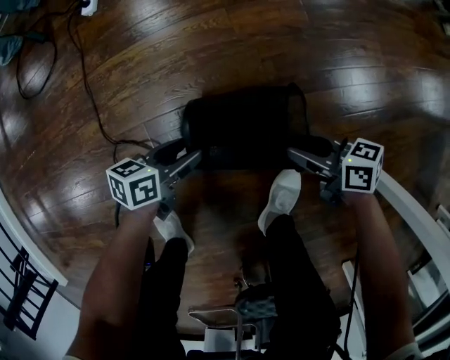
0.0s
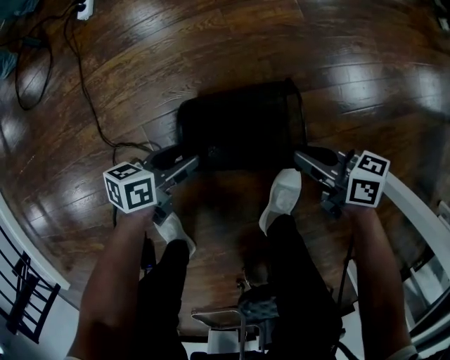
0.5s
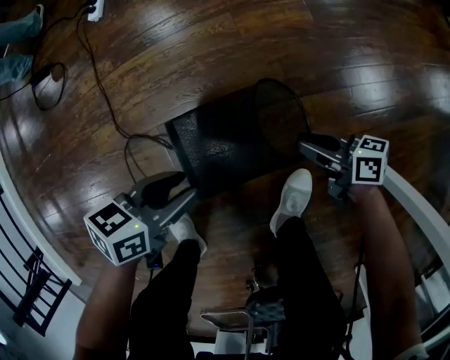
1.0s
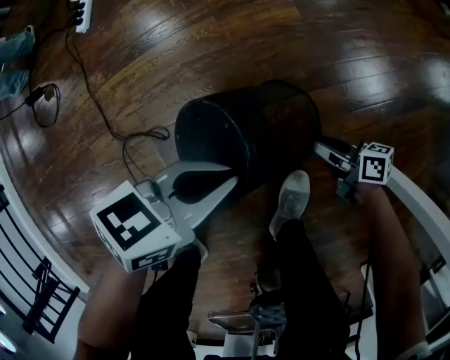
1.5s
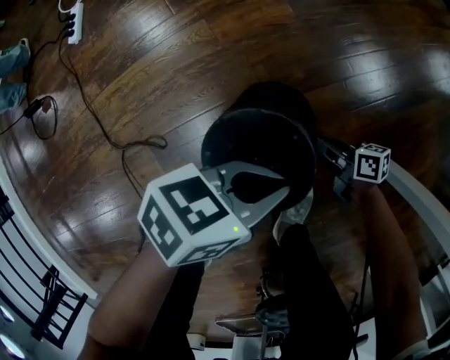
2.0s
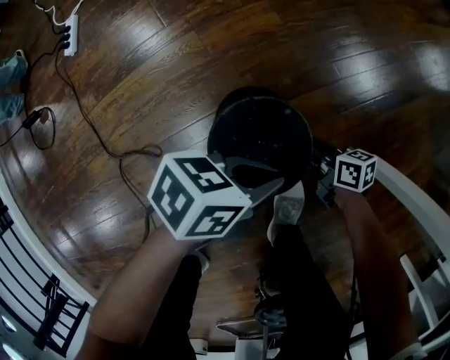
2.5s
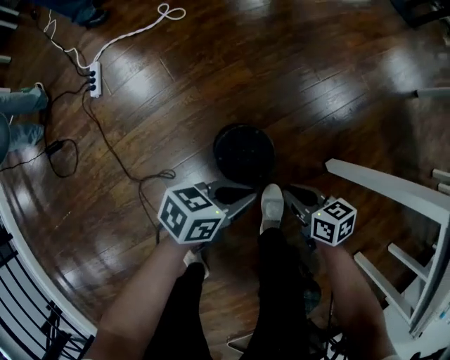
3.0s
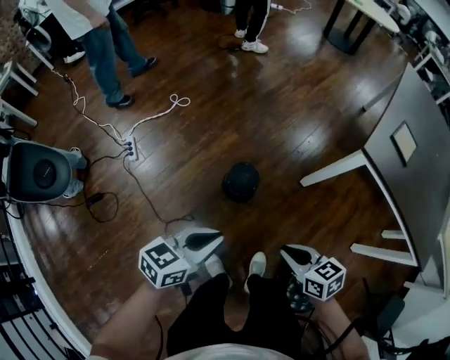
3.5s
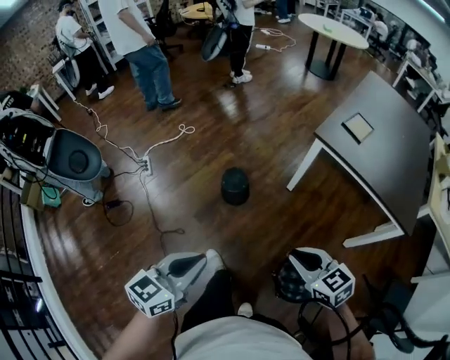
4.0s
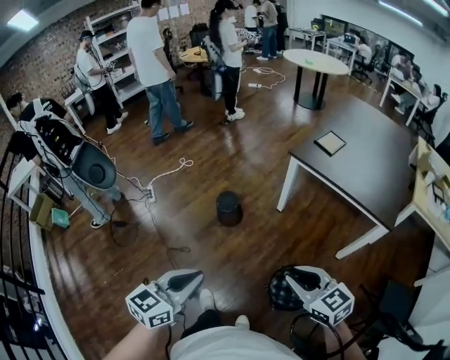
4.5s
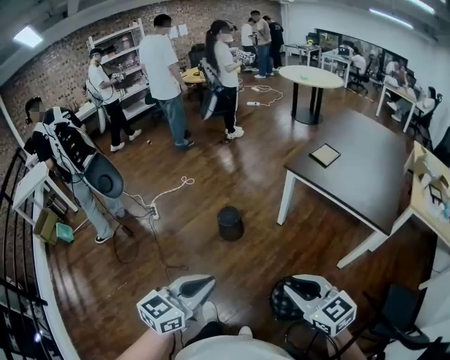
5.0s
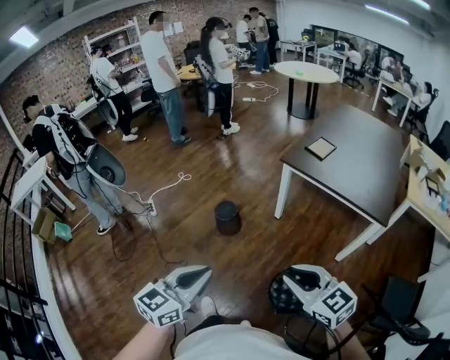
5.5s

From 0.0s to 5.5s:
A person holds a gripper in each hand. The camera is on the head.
From 0.0s to 2.0s: The left gripper changes place by some 25 cm, swivels some 40 degrees, and closes. The right gripper travels downward by roughly 10 cm, changes its angle by approximately 20 degrees, and closes its fingers.
From 2.0s to 3.5s: The grippers both shift upward by about 50 cm. The left gripper turns by approximately 20 degrees, while the right gripper changes its angle by some 30 degrees.
From 3.5s to 5.5s: The left gripper goes approximately 40 cm backward and upward, and turns by roughly 30 degrees. Meanwhile the right gripper heads backward, upward and to the right, covering approximately 50 cm, and turns by roughly 40 degrees.

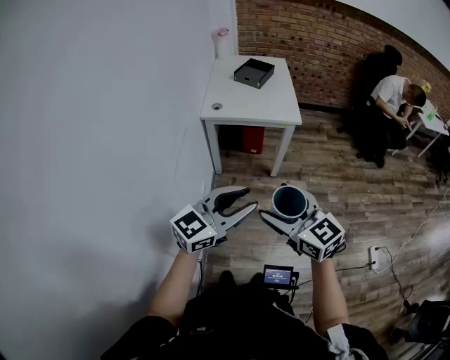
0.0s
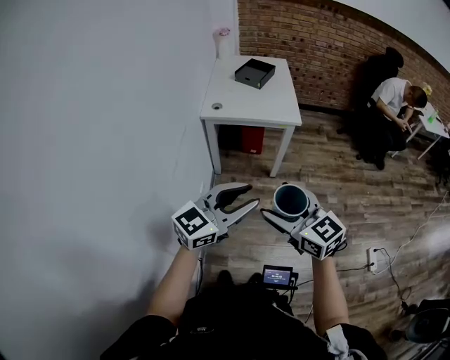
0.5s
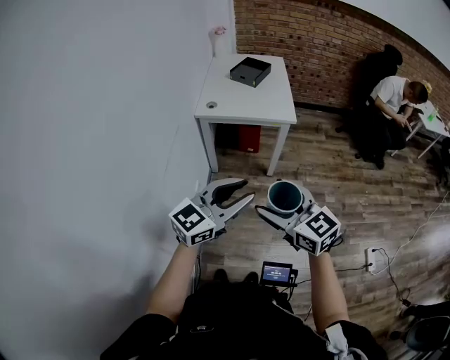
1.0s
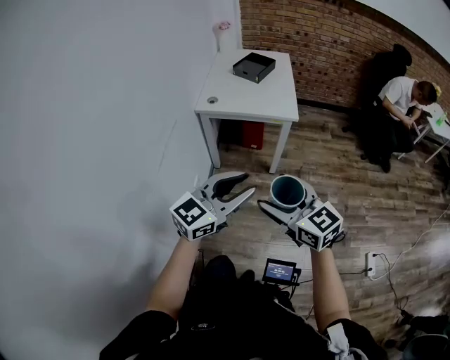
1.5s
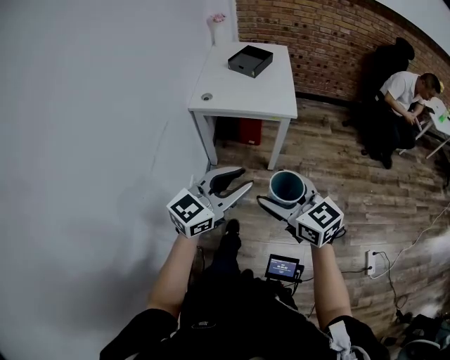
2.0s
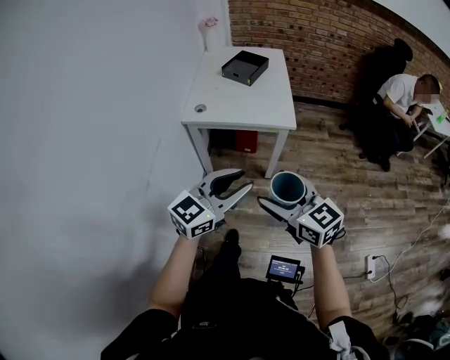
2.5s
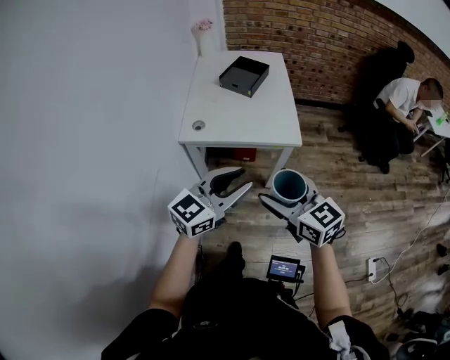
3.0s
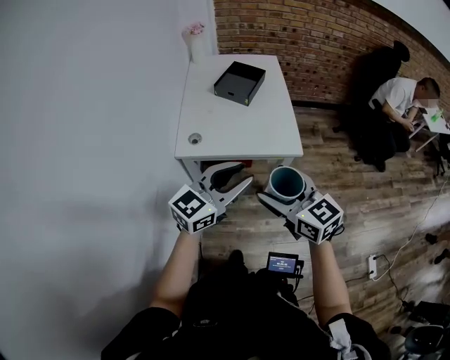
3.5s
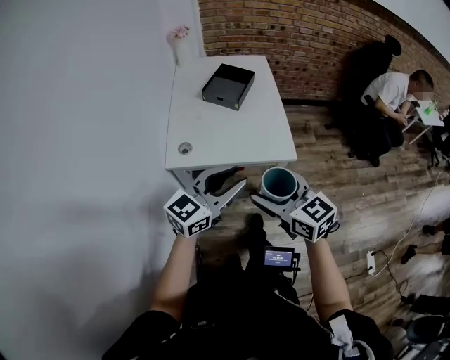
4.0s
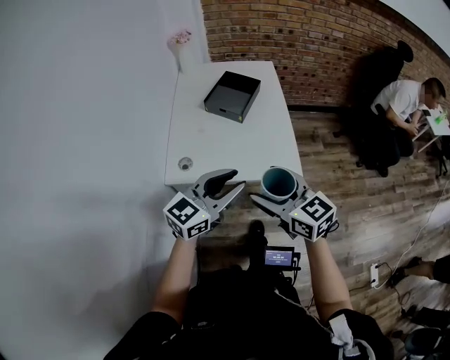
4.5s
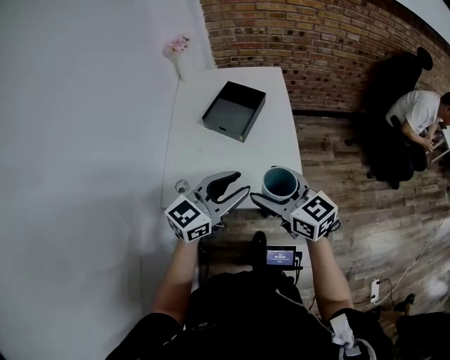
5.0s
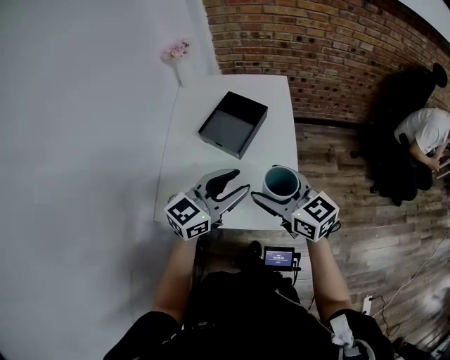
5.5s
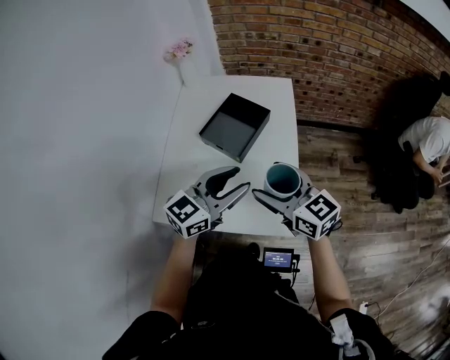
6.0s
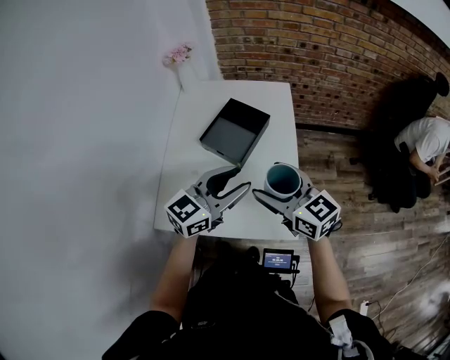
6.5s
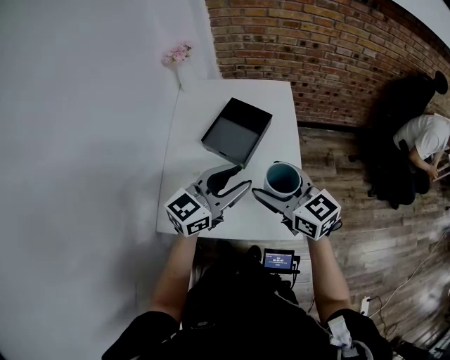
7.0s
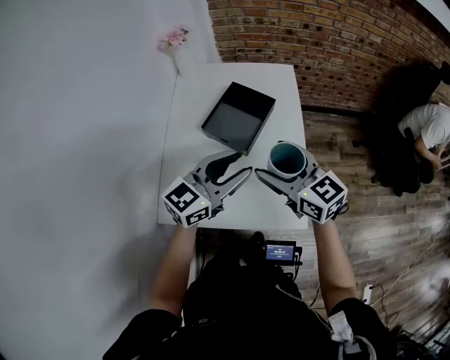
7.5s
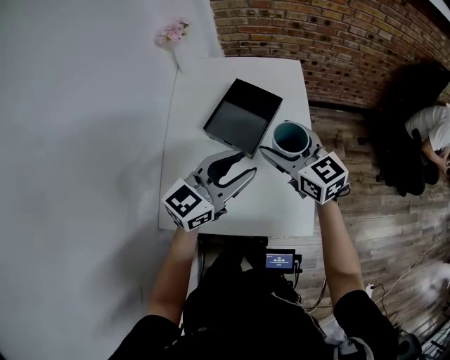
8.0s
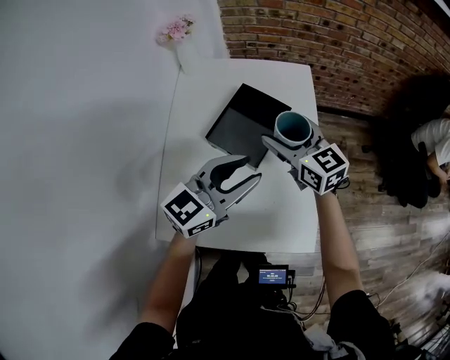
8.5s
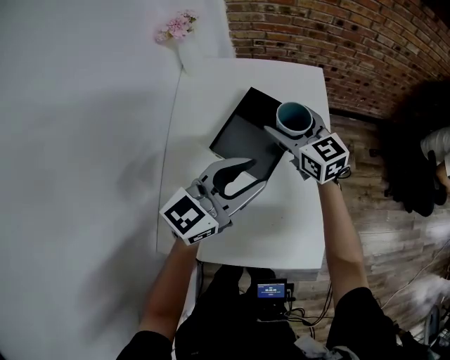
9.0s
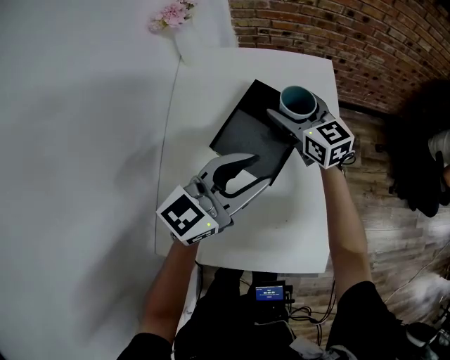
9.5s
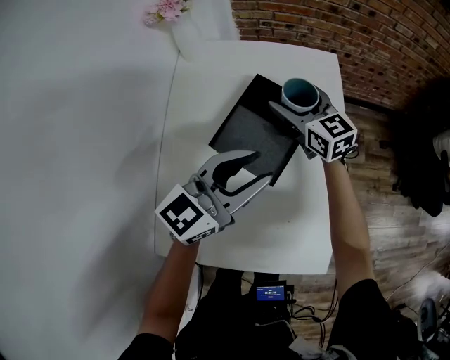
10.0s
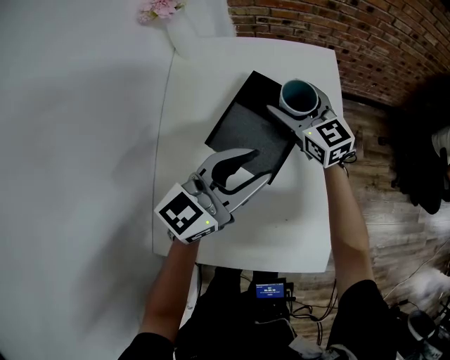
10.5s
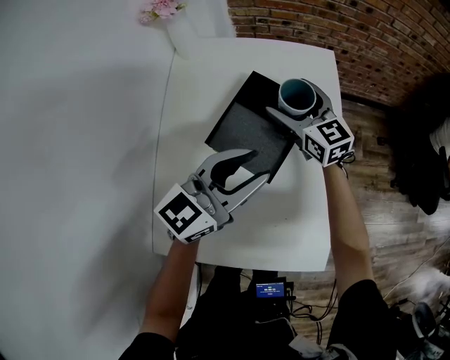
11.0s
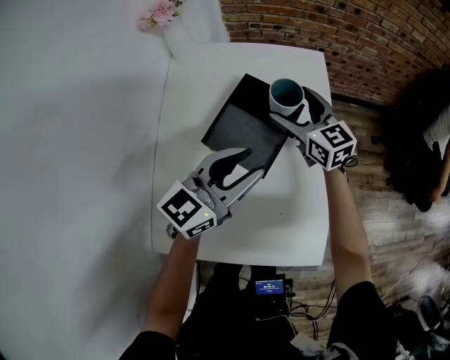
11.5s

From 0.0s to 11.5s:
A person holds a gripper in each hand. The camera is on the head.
From 0.0s to 2.0s: Both grippers travel together forward and to the right, roughly 10 cm.
From 2.0s to 4.0s: The grippers both shift forward by some 30 cm.
From 4.0s to 6.0s: The grippers both shift forward by roughly 30 cm.
From 6.0s to 7.5s: The left gripper moves approximately 5 cm. Meanwhile the right gripper moves about 5 cm.
From 7.5s to 9.5s: The left gripper shifts about 15 cm forward and downward. Meanwhile the right gripper is displaced forward and downward by approximately 30 cm.
From 9.5s to 11.5s: There are only small adjustments of the grippers.

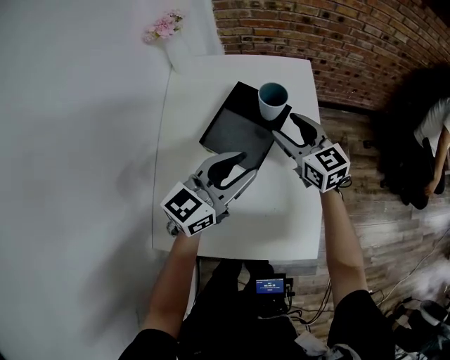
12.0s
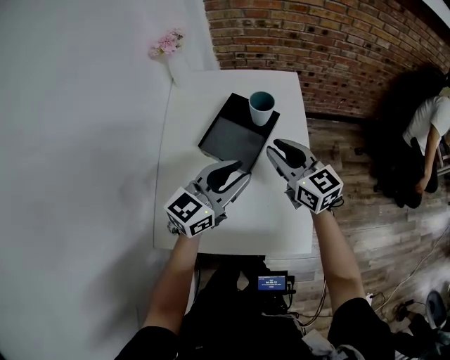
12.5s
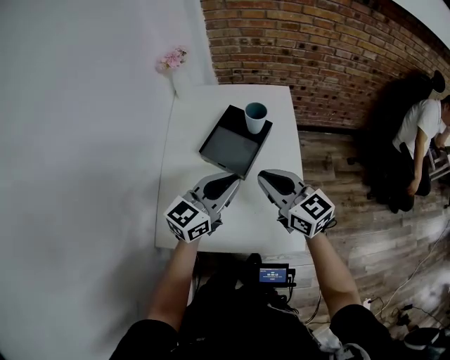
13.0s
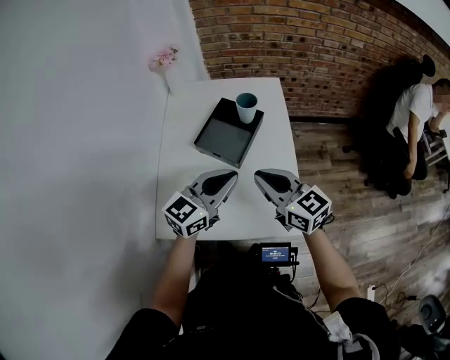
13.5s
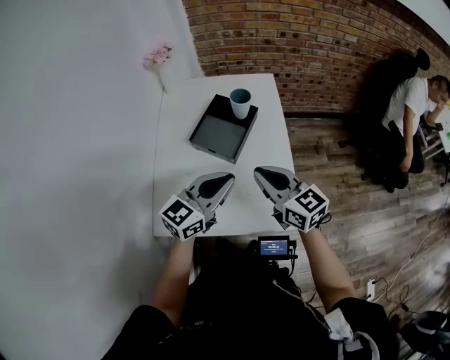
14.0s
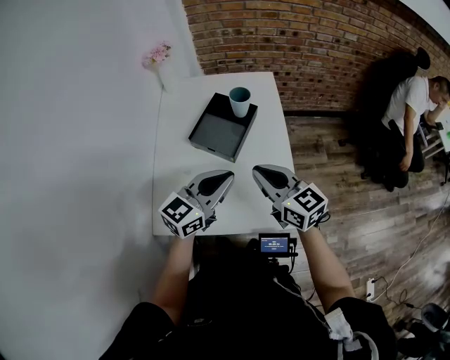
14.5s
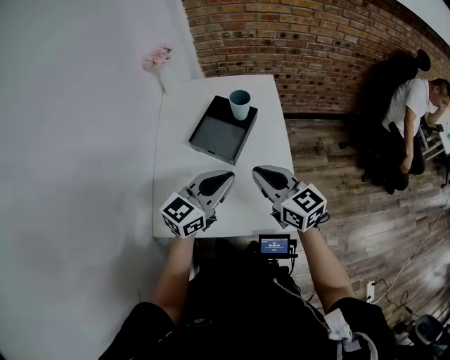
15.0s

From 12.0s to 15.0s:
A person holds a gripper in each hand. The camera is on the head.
From 12.0s to 13.5s: The right gripper heads backward and upward, covering roughly 25 cm, and closes up. The left gripper travels backward by approximately 10 cm, and closes.
From 13.5s to 15.0s: The grippers move only a little.

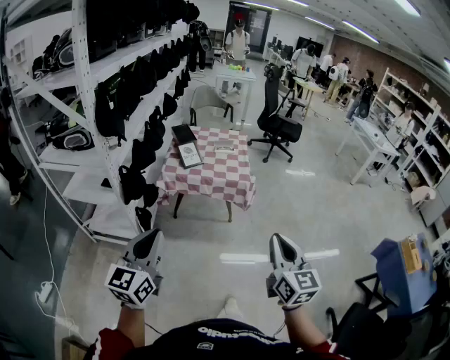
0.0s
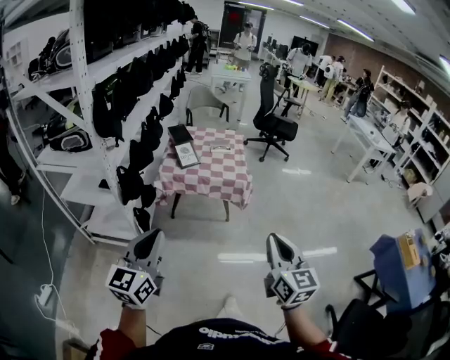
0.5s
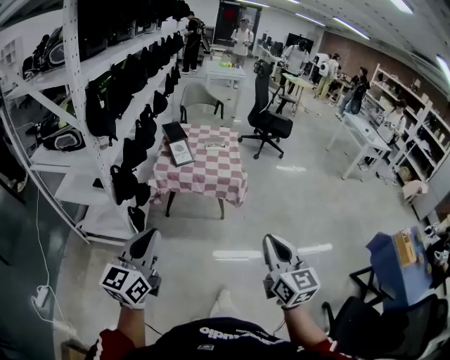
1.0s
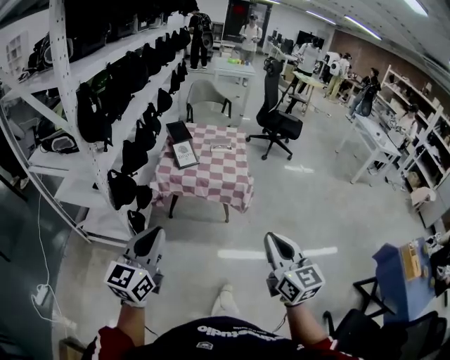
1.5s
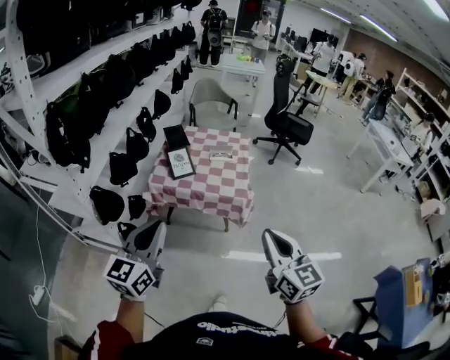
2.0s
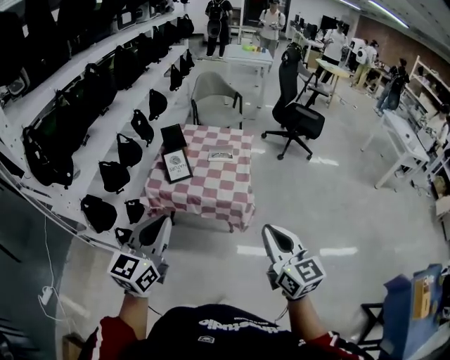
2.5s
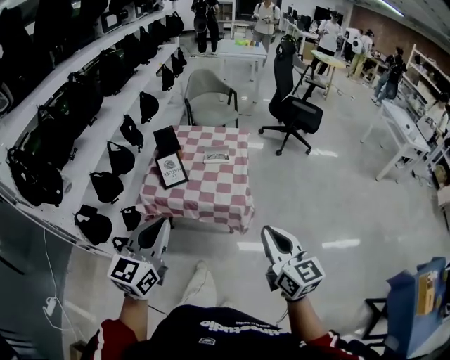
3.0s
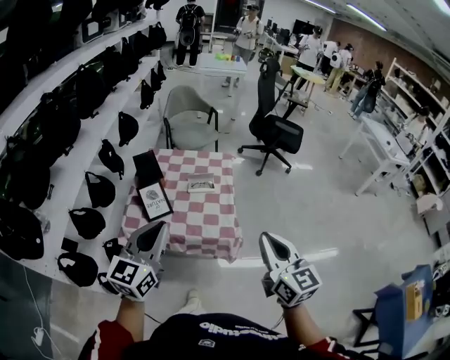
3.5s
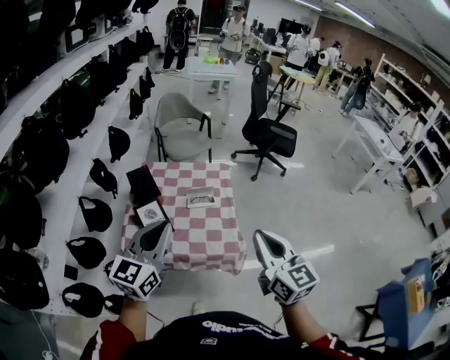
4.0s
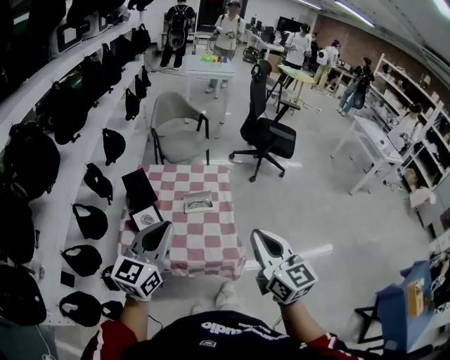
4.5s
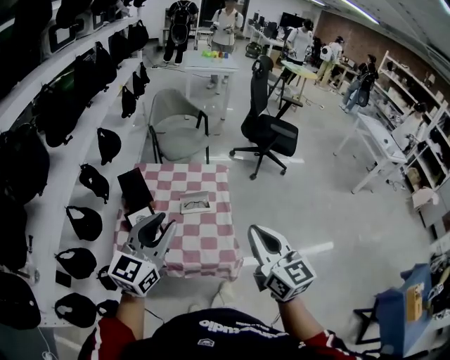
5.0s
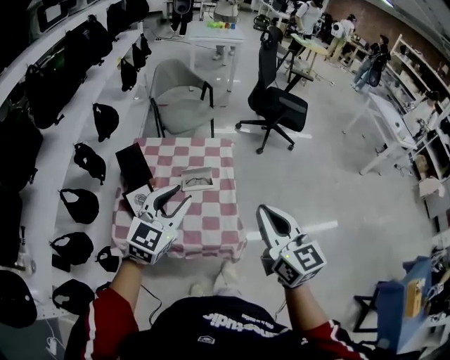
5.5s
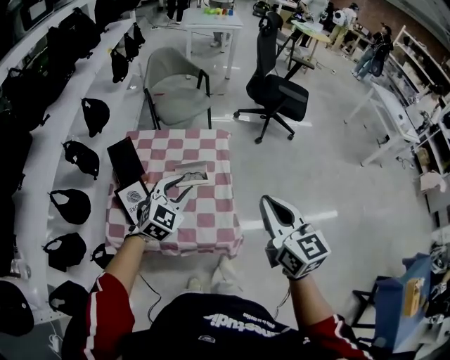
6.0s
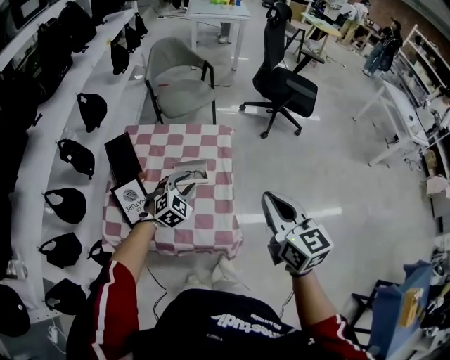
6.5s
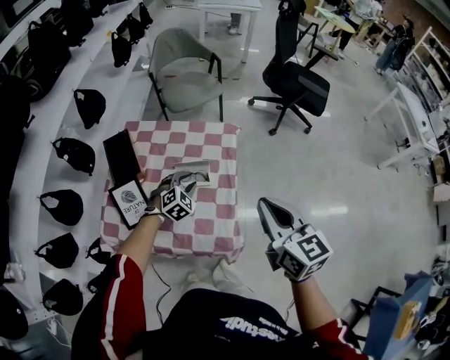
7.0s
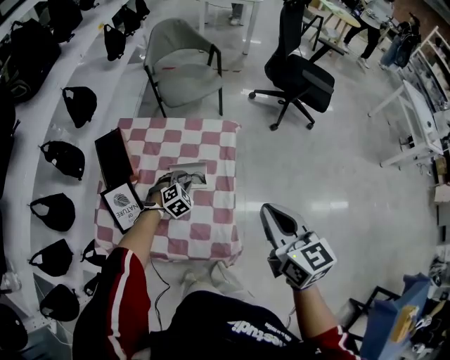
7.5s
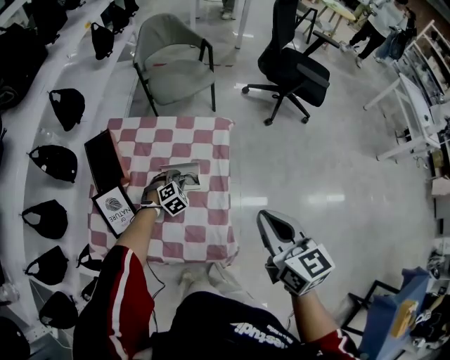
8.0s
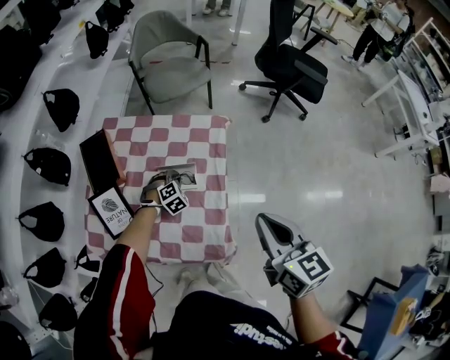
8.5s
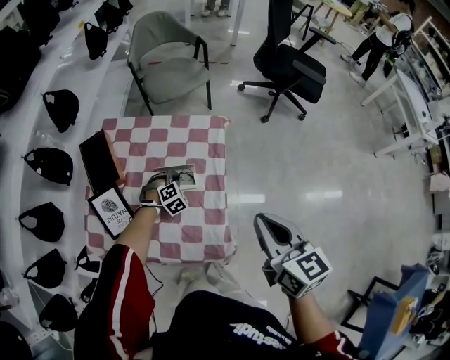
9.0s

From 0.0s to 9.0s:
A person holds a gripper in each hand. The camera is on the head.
From 0.0s to 2.0s: Both grippers travel together forward, about 20 cm.
From 2.0s to 4.5s: Both grippers travel together forward, about 40 cm.
From 4.5s to 7.0s: The left gripper is displaced downward and forward by roughly 50 cm, points its fingers some 50 degrees further downward, and opens; the right gripper travels forward, downward and to the right by approximately 25 cm.
From 7.0s to 9.0s: The right gripper heads downward, covering approximately 5 cm. The left gripper moves downward and forward, roughly 15 cm, and closes.
